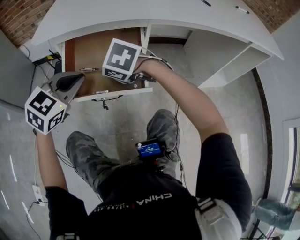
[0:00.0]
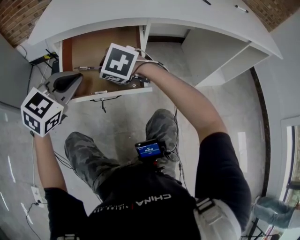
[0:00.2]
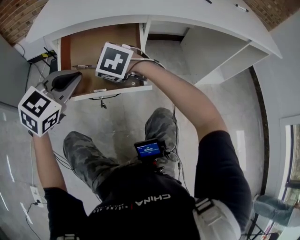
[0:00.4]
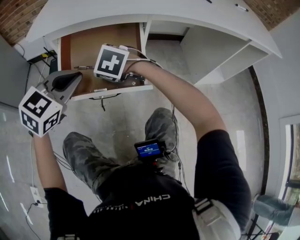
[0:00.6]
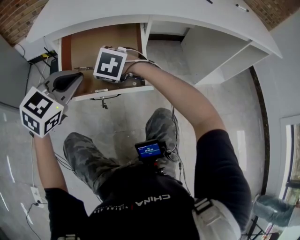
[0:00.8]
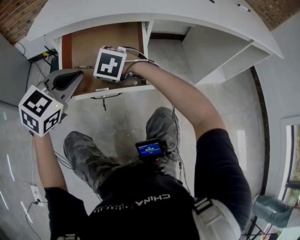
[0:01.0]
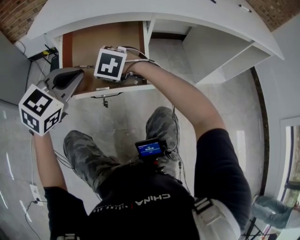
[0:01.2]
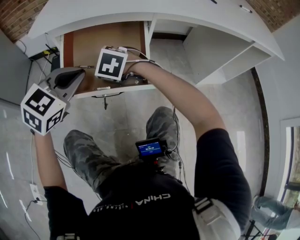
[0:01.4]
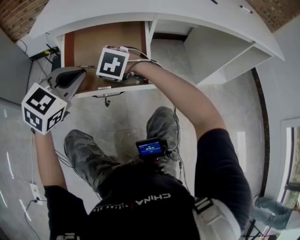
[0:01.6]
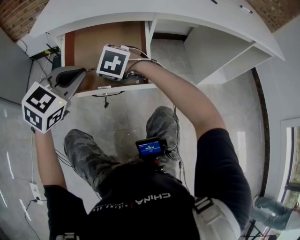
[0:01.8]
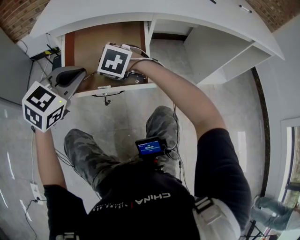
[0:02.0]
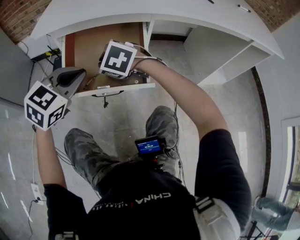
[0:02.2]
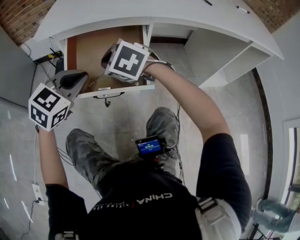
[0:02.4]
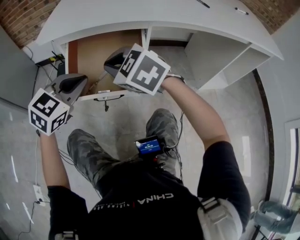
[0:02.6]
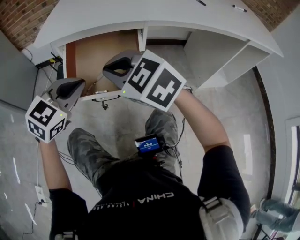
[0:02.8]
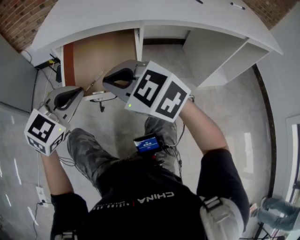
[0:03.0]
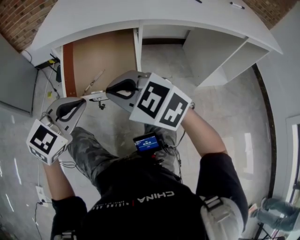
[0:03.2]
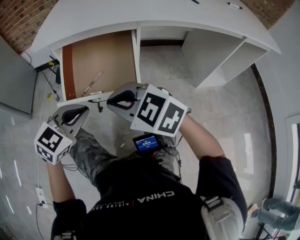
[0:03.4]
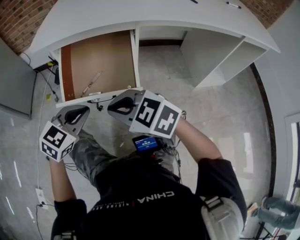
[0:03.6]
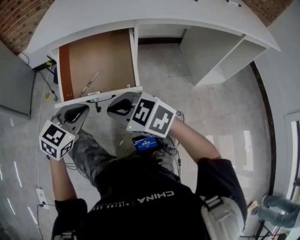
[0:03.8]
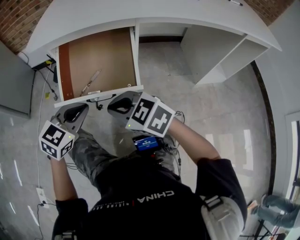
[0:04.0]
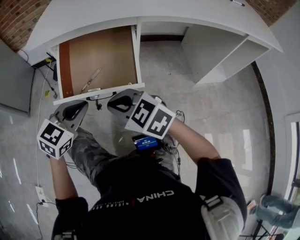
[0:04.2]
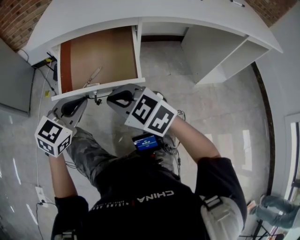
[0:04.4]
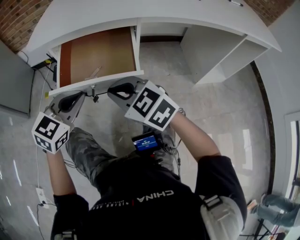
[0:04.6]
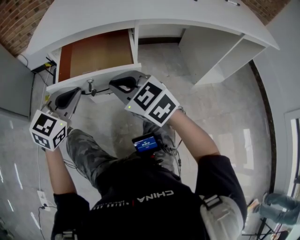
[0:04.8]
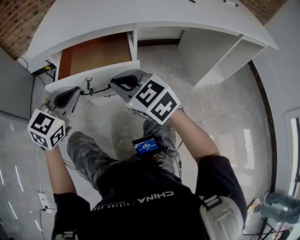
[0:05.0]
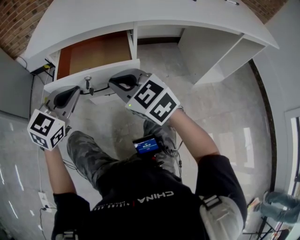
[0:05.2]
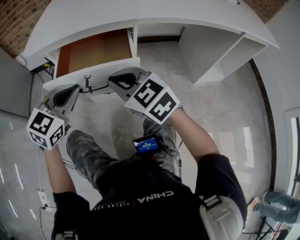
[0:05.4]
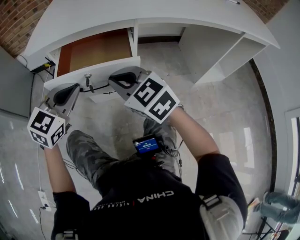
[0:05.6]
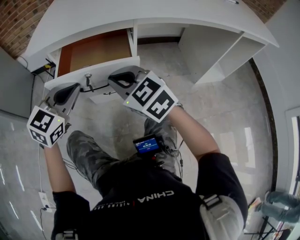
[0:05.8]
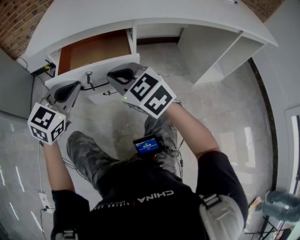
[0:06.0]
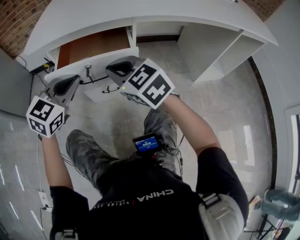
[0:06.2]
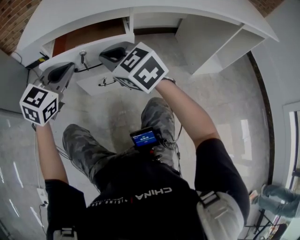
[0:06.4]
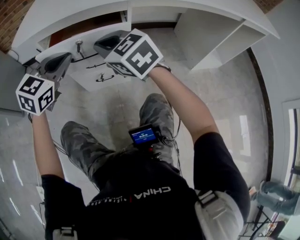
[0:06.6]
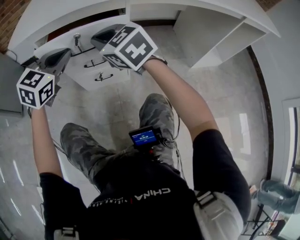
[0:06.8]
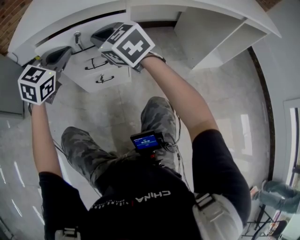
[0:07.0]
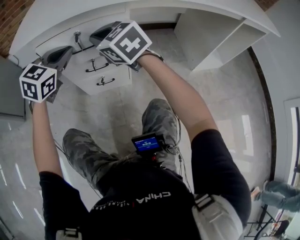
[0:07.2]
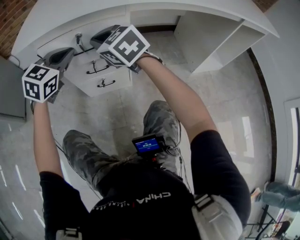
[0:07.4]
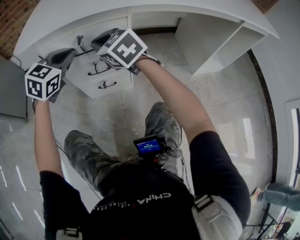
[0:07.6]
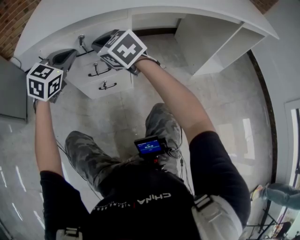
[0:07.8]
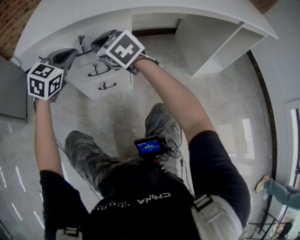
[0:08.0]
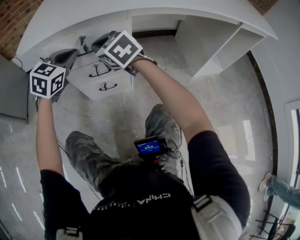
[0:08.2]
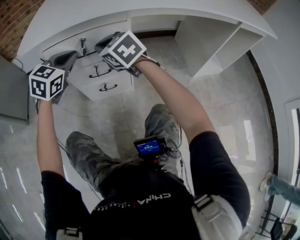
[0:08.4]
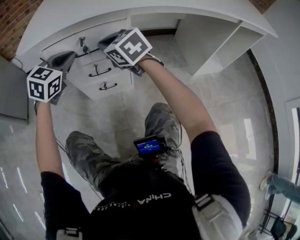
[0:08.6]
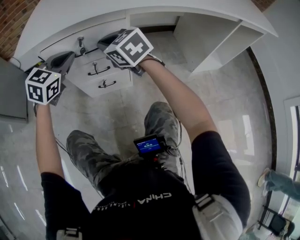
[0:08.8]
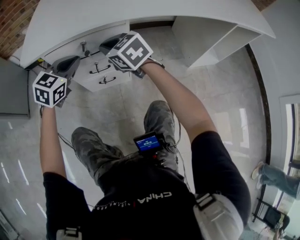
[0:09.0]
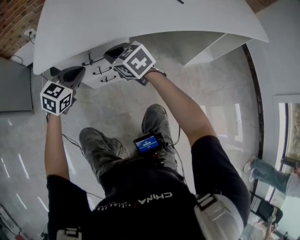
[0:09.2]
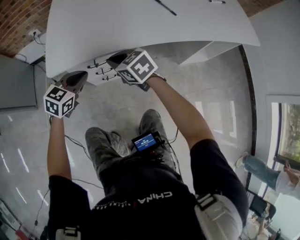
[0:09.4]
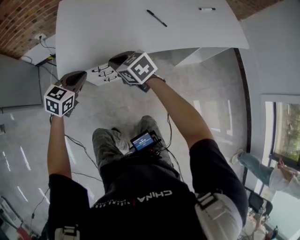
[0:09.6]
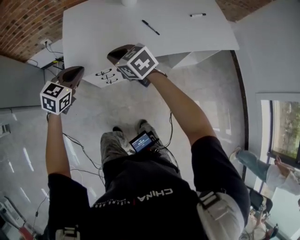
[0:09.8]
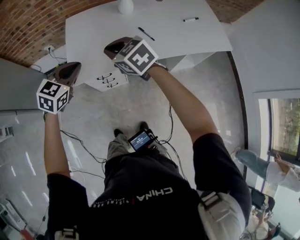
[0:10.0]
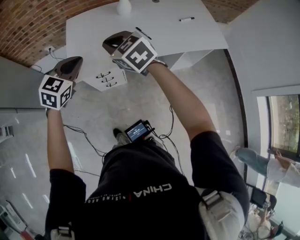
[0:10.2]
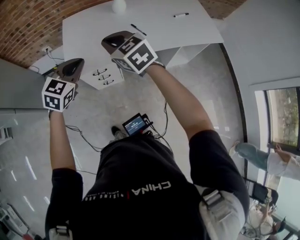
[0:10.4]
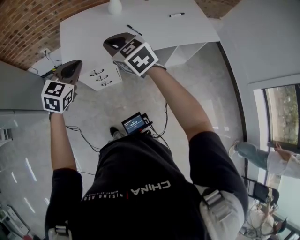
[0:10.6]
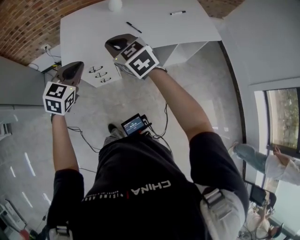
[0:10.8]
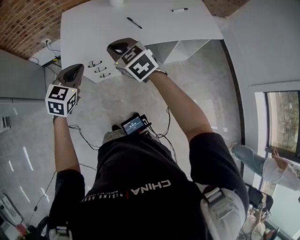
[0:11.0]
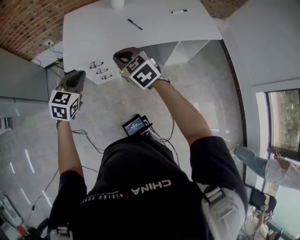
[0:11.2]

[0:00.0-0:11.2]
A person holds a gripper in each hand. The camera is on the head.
0:00.0 to 0:01.6: The right gripper is displaced downward by approximately 5 cm.
0:01.6 to 0:03.2: The left gripper travels backward by approximately 10 cm; the right gripper shifts roughly 20 cm backward and upward, and tips its fingers upward by approximately 30 degrees.
0:03.2 to 0:04.8: The left gripper moves forward, roughly 5 cm. The right gripper ends up approximately 5 cm from where it was.
0:04.8 to 0:06.4: The two grippers go about 5 cm forward.
0:06.4 to 0:08.0: Both grippers travel together forward, roughly 10 cm.
0:08.0 to 0:09.6: The grippers both shift upward by approximately 25 cm. The left gripper rotates approximately 20 degrees. The right gripper swivels roughly 30 degrees.
0:09.6 to 0:11.2: The right gripper shifts some 30 cm upward, backward and to the right; the left gripper heads upward and backward, covering about 30 cm.

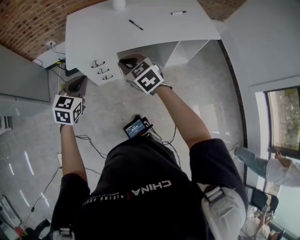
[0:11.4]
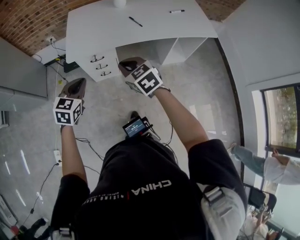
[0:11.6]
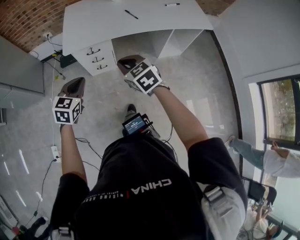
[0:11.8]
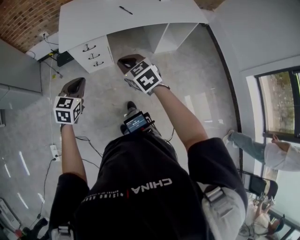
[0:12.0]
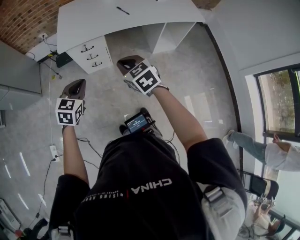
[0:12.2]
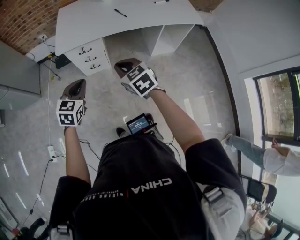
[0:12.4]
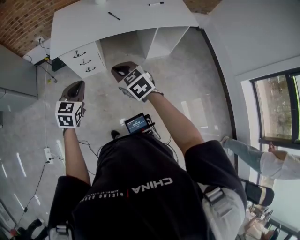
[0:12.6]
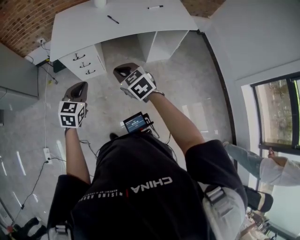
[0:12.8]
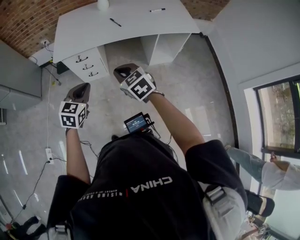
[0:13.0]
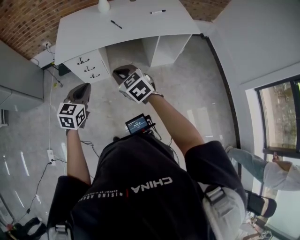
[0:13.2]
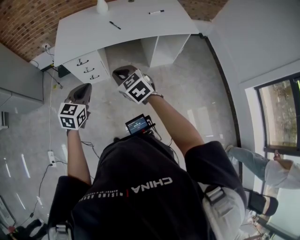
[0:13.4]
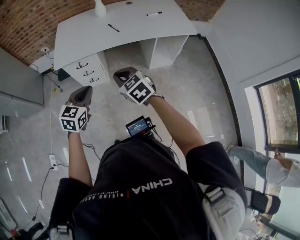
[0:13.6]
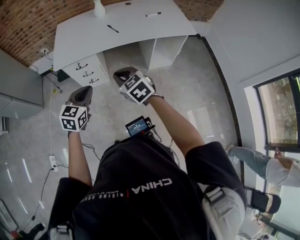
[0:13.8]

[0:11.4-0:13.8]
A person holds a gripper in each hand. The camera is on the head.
0:11.4 to 0:12.6: Both grippers move backward and to the right, roughly 20 cm.
0:12.6 to 0:13.8: The left gripper is displaced to the right by about 5 cm.

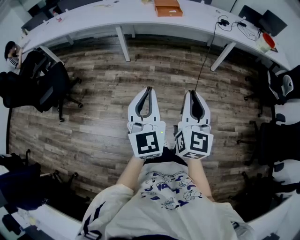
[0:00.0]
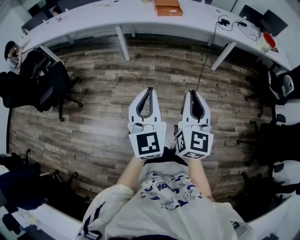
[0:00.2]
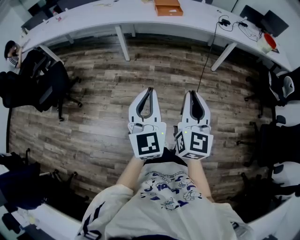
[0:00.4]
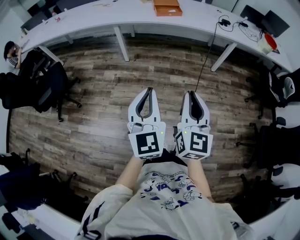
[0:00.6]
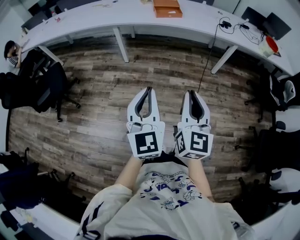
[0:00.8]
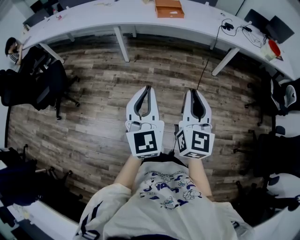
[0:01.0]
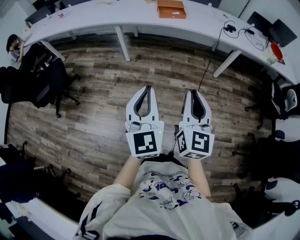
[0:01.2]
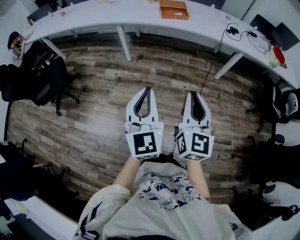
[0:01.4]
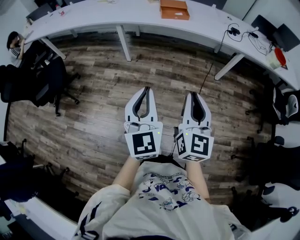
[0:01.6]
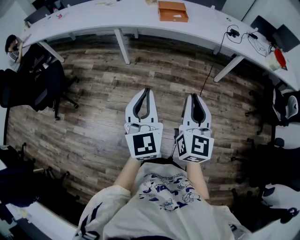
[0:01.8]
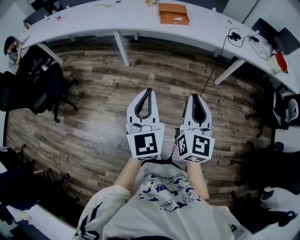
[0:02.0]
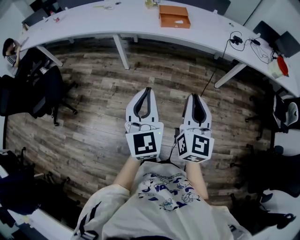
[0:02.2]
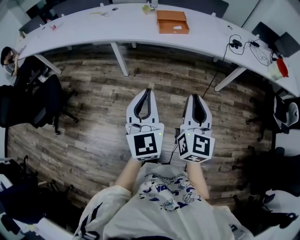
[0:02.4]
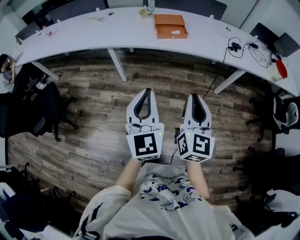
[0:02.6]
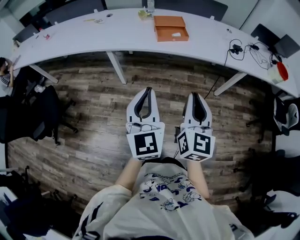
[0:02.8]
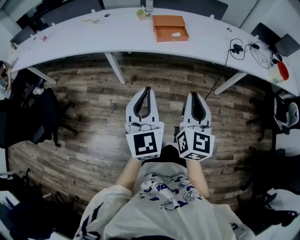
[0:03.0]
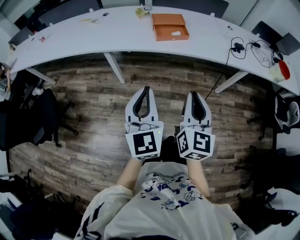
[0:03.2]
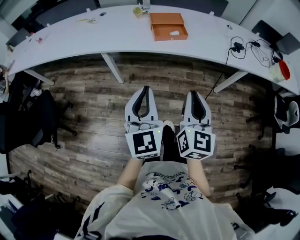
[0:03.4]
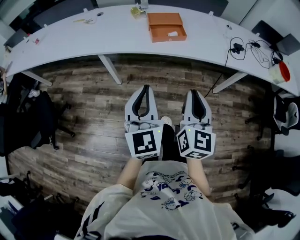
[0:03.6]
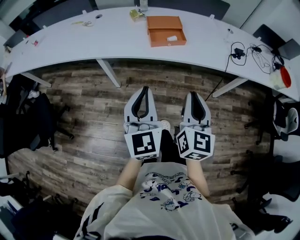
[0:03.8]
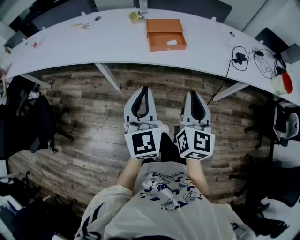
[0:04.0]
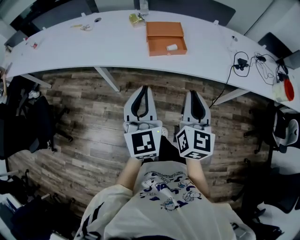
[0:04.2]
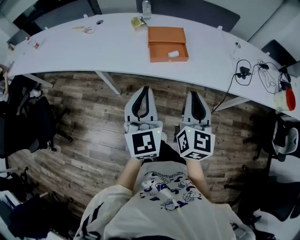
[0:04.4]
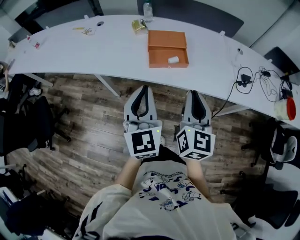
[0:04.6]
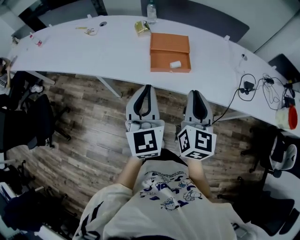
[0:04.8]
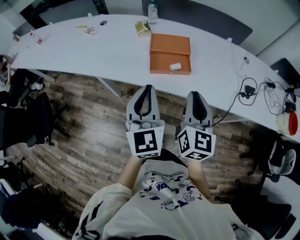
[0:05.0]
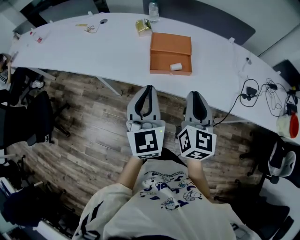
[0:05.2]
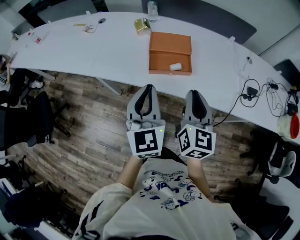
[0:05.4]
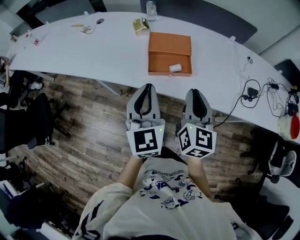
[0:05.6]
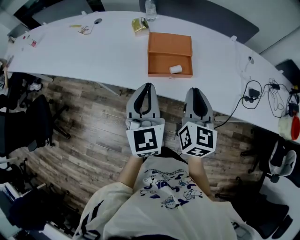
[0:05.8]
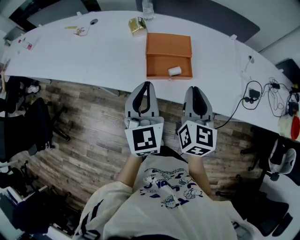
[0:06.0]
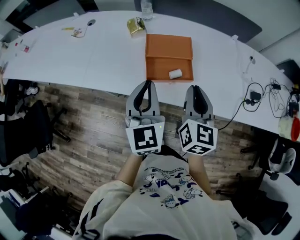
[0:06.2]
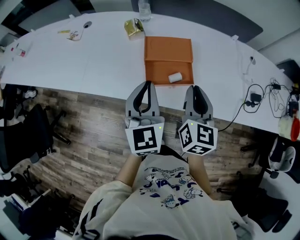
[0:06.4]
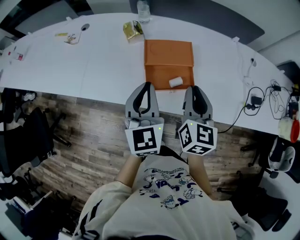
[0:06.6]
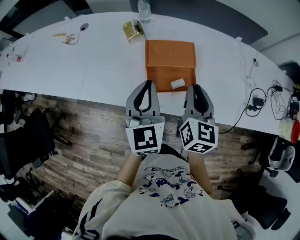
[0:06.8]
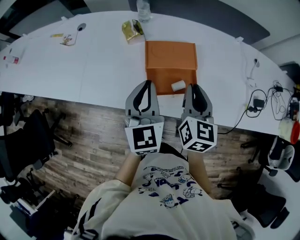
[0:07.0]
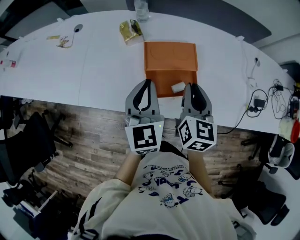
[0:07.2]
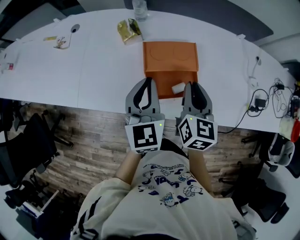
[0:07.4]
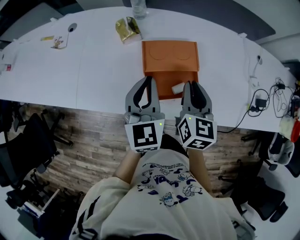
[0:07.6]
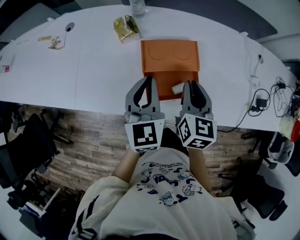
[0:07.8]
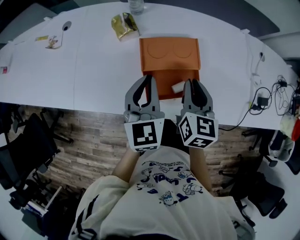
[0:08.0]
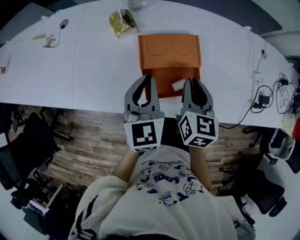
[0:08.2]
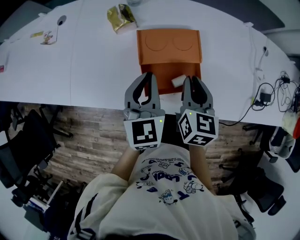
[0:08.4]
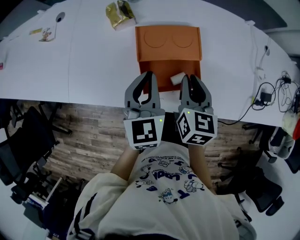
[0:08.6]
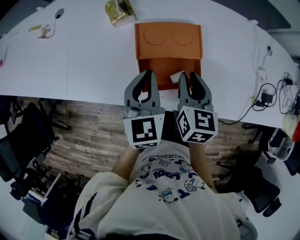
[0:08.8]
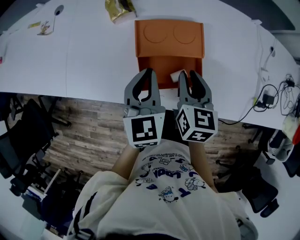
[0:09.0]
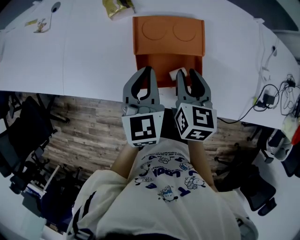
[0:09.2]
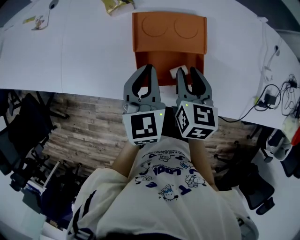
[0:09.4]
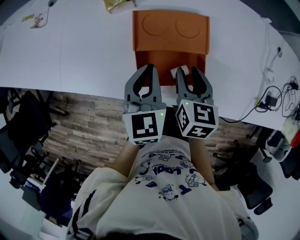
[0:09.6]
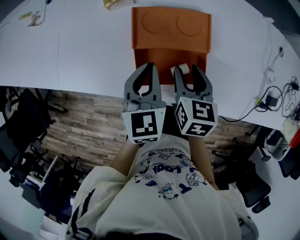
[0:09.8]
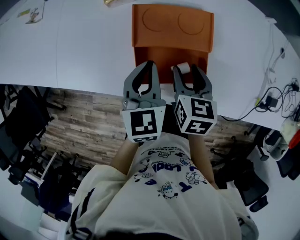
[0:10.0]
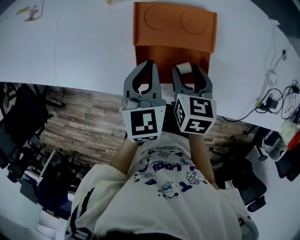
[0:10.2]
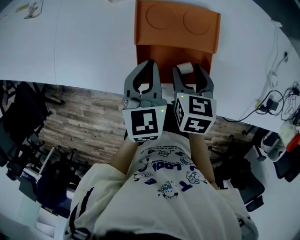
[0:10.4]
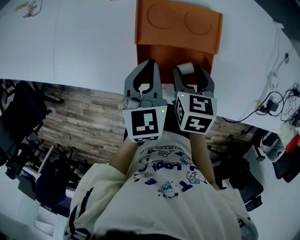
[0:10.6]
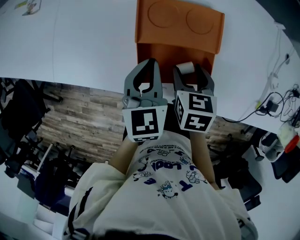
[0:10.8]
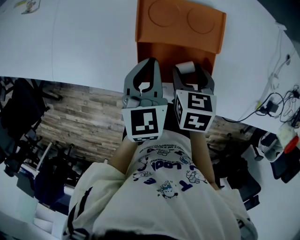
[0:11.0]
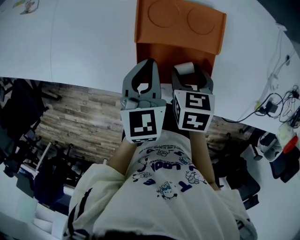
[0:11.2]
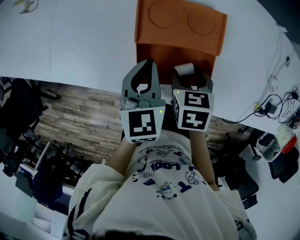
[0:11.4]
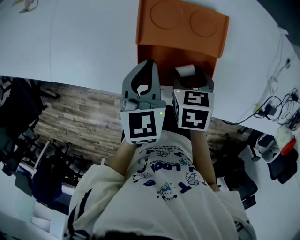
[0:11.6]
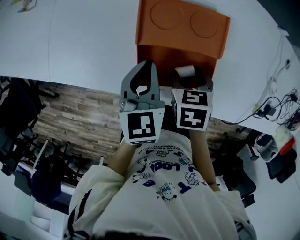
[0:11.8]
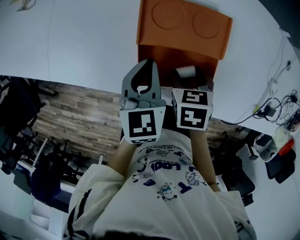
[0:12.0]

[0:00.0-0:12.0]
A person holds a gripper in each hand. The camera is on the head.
0:00.0 to 0:01.6: The two grippers go roughly 15 cm forward and to the right.
0:01.6 to 0:03.0: Both grippers move forward, roughly 30 cm.
0:03.0 to 0:04.4: Both grippers move forward, roughly 25 cm.
0:04.4 to 0:06.0: Both grippers move forward, roughly 20 cm.
0:06.0 to 0:07.6: The right gripper shifts about 20 cm forward and downward. Meanwhile the left gripper travels forward by about 20 cm.
0:07.6 to 0:09.0: Both grippers travel together downward, some 5 cm.
0:09.0 to 0:10.4: Both grippers travel together downward, roughly 5 cm. The right gripper opens.
0:10.4 to 0:12.0: The right gripper swivels roughly 20 degrees.
